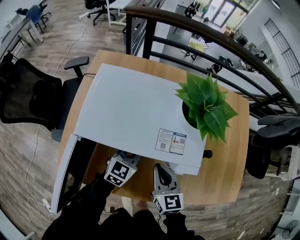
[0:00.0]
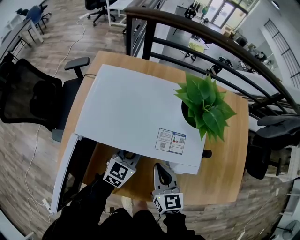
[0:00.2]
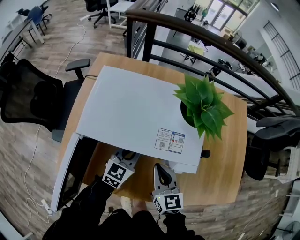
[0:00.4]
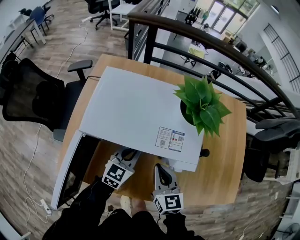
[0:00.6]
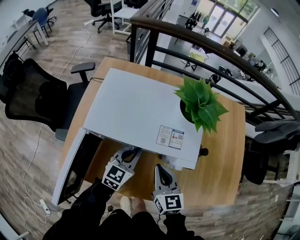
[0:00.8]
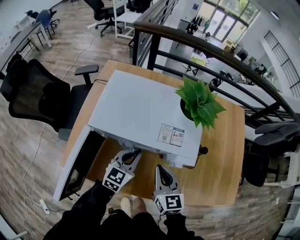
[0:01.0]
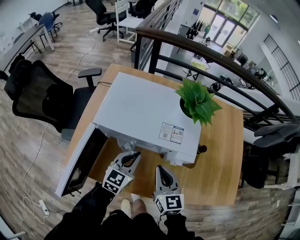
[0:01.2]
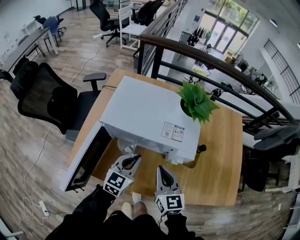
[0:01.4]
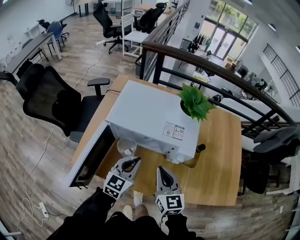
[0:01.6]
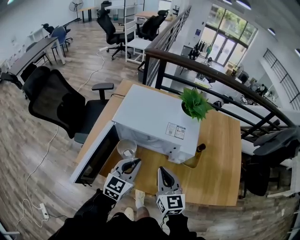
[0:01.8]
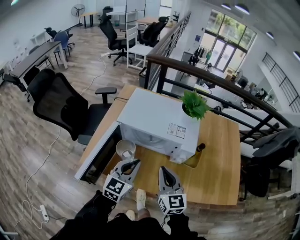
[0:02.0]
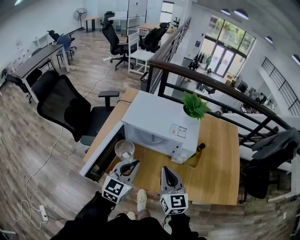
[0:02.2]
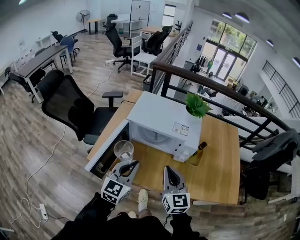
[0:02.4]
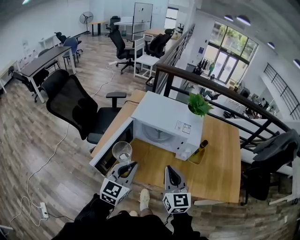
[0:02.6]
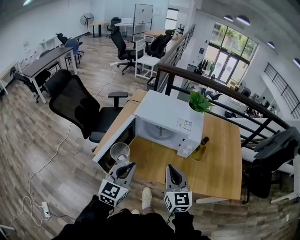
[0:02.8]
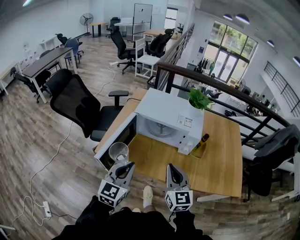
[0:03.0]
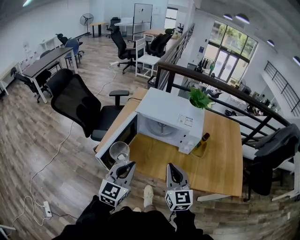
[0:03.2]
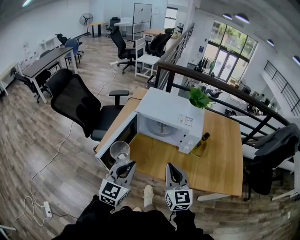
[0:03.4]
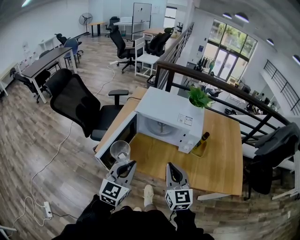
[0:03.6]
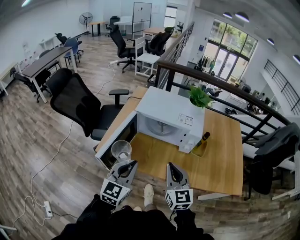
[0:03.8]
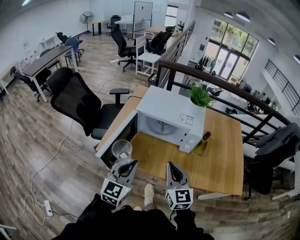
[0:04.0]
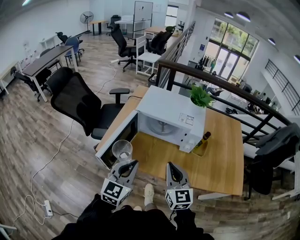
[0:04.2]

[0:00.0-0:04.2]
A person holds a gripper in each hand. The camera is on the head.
0:00.0 to 0:01.4: The left gripper travels backward and upward by some 15 cm. Meanwhile the right gripper goes about 10 cm upward and backward.
0:01.4 to 0:02.8: The two grippers go approximately 25 cm backward and upward.
0:02.8 to 0:04.2: The grippers move only a little.

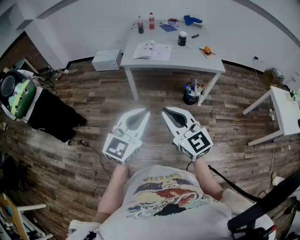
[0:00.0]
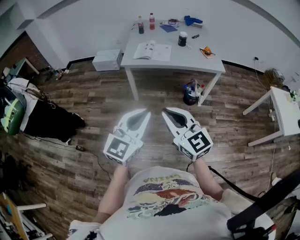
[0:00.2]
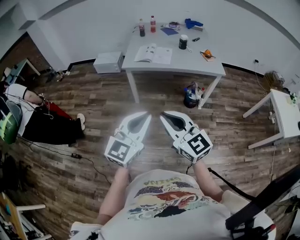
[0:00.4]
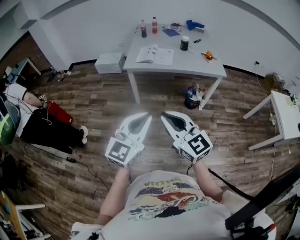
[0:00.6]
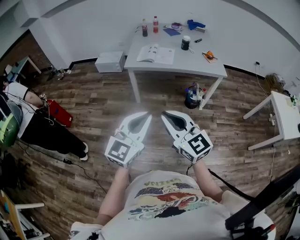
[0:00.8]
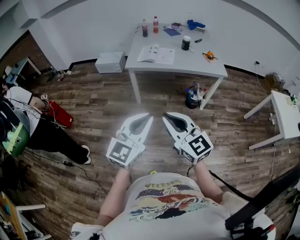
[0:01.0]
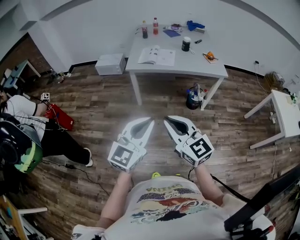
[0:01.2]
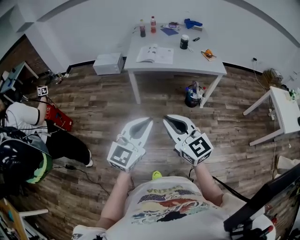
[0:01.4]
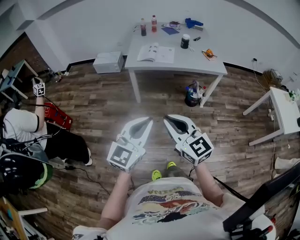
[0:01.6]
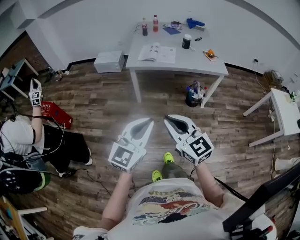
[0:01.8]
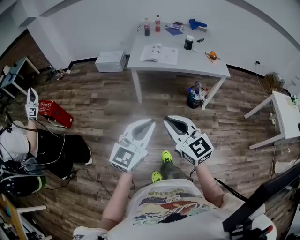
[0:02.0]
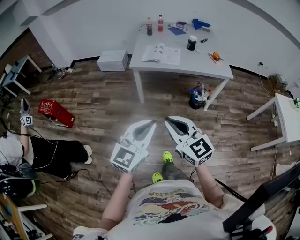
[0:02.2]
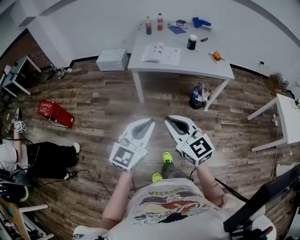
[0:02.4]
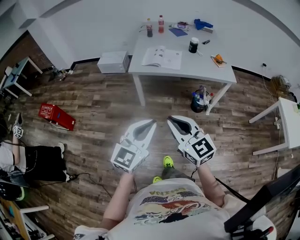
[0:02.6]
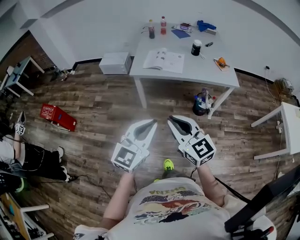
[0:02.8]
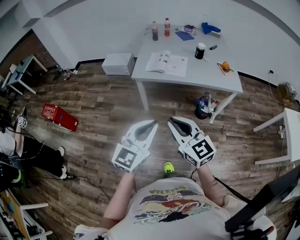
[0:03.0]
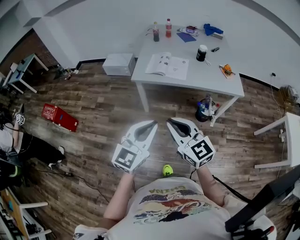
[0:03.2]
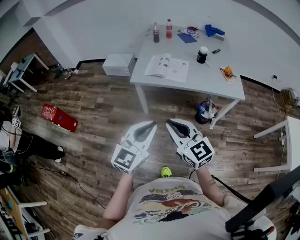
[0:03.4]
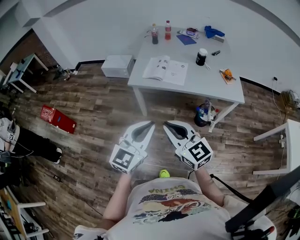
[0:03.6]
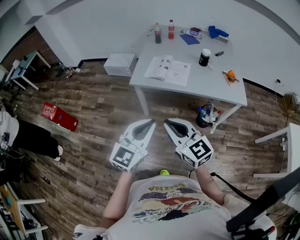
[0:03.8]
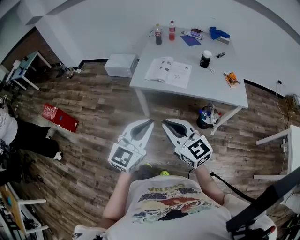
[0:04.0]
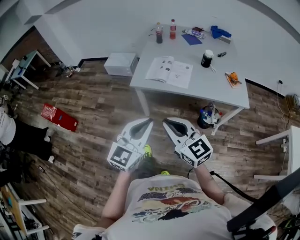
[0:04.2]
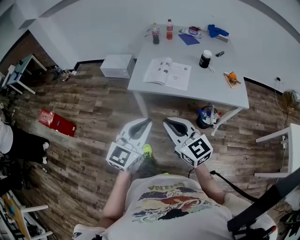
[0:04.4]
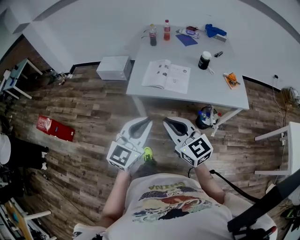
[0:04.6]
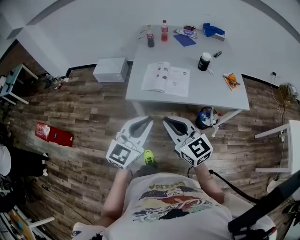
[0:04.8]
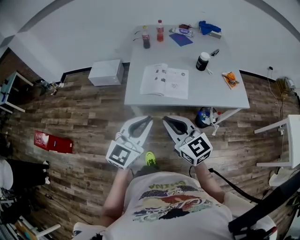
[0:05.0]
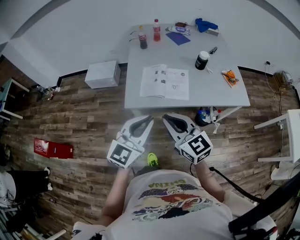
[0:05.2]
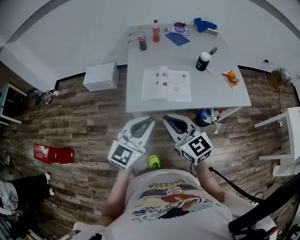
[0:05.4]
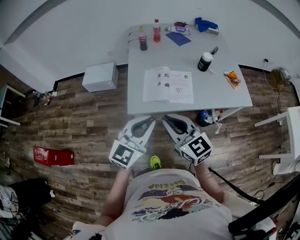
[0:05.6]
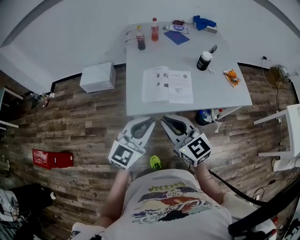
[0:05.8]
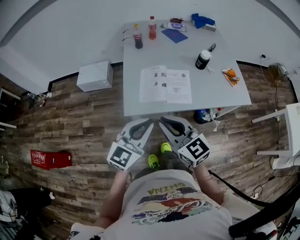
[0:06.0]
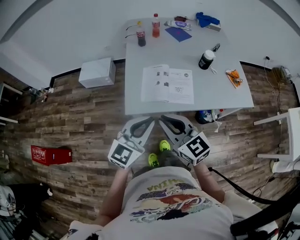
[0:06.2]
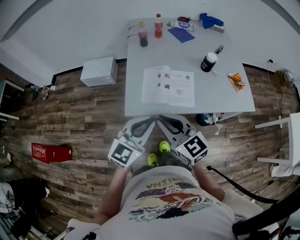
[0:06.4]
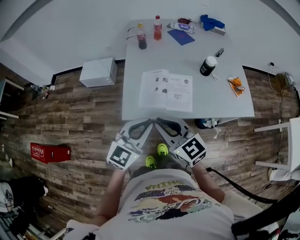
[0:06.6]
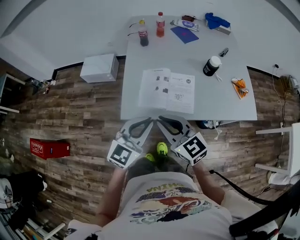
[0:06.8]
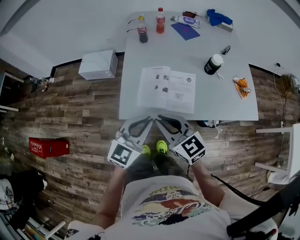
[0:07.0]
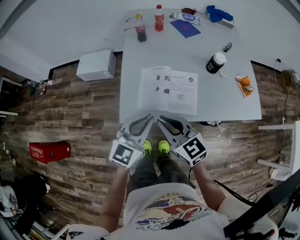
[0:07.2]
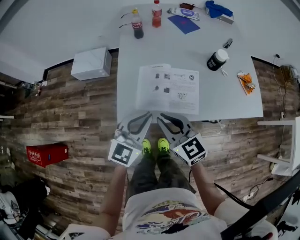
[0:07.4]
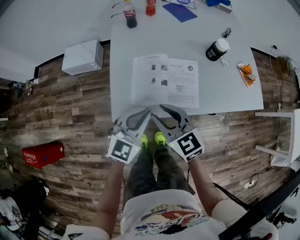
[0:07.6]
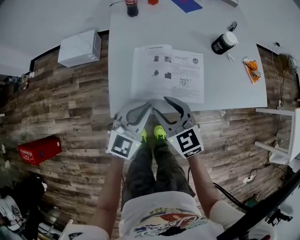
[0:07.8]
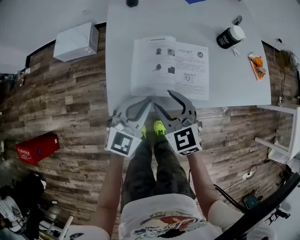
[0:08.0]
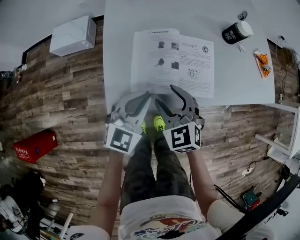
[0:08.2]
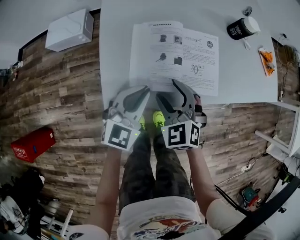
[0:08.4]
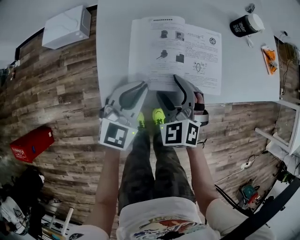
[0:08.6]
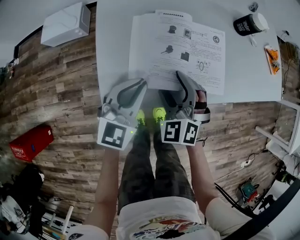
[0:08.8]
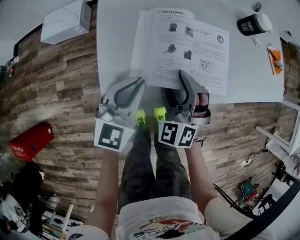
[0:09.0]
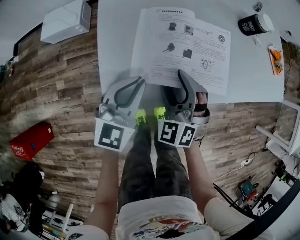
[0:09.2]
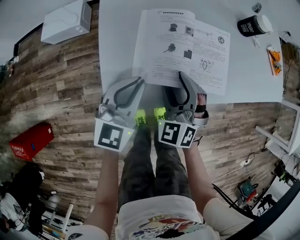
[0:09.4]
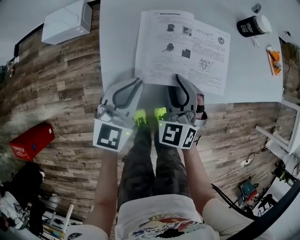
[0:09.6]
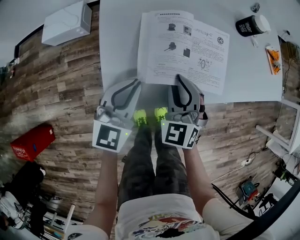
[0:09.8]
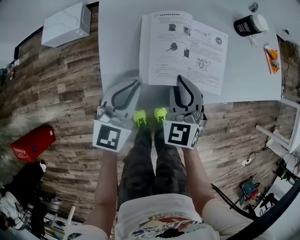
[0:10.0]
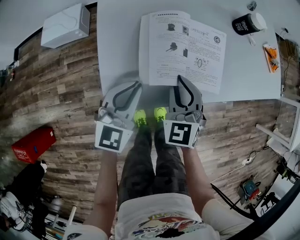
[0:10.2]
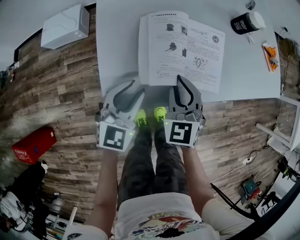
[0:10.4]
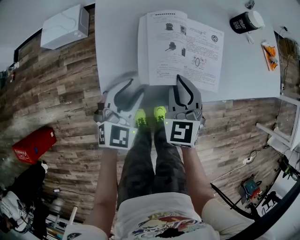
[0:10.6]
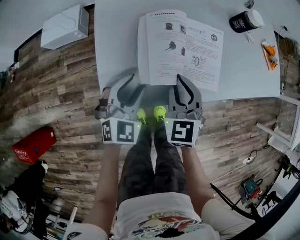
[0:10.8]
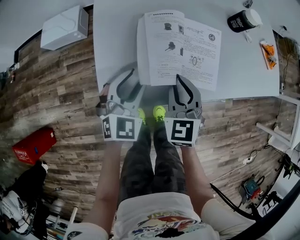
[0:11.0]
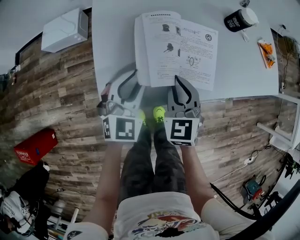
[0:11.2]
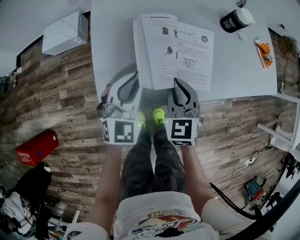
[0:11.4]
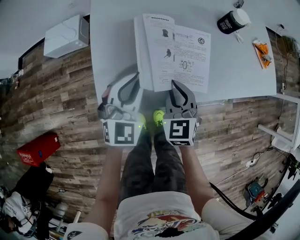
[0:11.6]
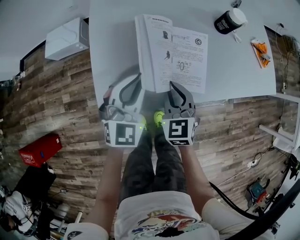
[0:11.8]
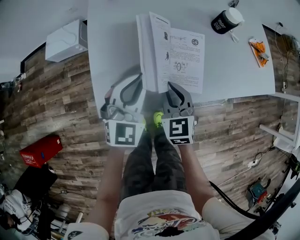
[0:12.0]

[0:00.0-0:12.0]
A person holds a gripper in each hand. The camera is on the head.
0:00.0 to 0:01.6: The two grippers go roughly 5 cm to the left.
0:01.6 to 0:03.0: The two grippers go roughly 20 cm forward.
0:03.0 to 0:04.4: The two grippers go some 20 cm forward.
0:04.4 to 0:06.0: Both grippers travel together forward and to the left, approximately 25 cm.
0:06.0 to 0:07.6: The grippers both shift forward and downward by about 25 cm.
0:07.6 to 0:09.0: The left gripper is displaced downward, to the left and forward by about 20 cm. The right gripper shifts approximately 20 cm downward, turns by about 50 degrees, and opens up.
0:09.0 to 0:10.4: The left gripper opens; the right gripper rotates roughly 30 degrees, and closes its fingers.
0:10.4 to 0:12.0: The right gripper shifts roughly 5 cm to the right, while the left gripper moves upward and to the right, roughly 10 cm.

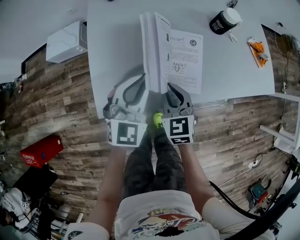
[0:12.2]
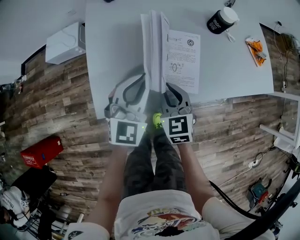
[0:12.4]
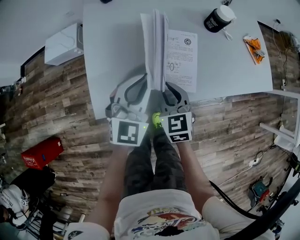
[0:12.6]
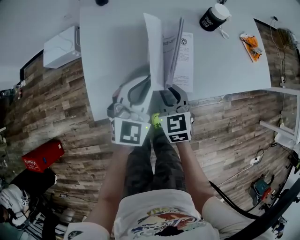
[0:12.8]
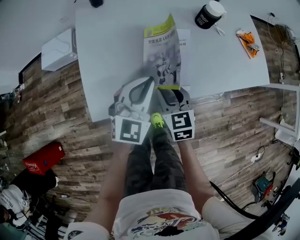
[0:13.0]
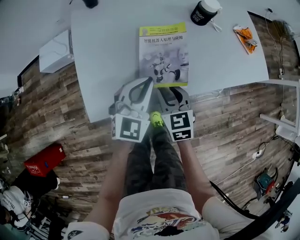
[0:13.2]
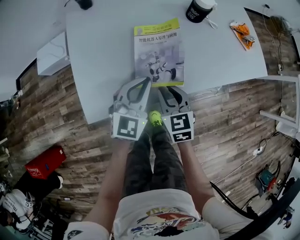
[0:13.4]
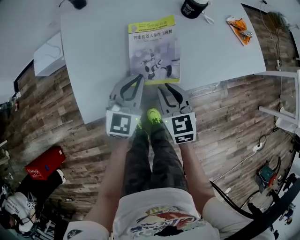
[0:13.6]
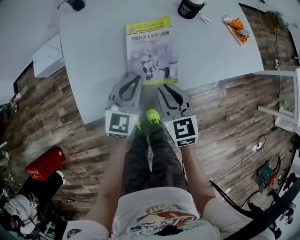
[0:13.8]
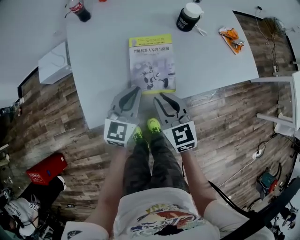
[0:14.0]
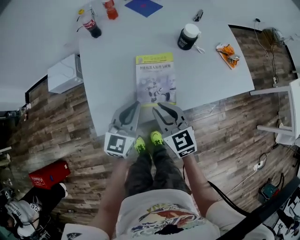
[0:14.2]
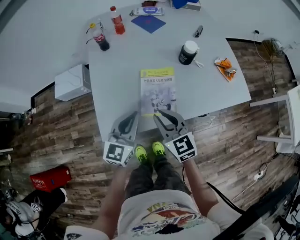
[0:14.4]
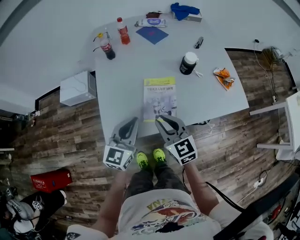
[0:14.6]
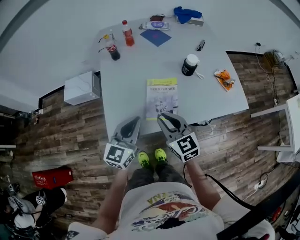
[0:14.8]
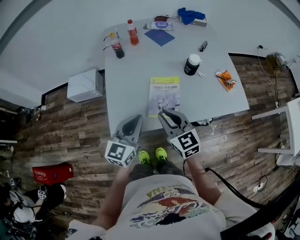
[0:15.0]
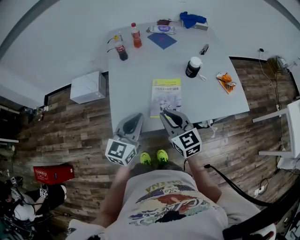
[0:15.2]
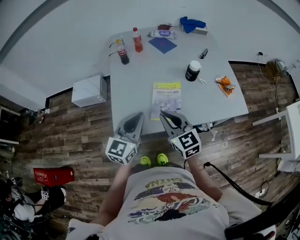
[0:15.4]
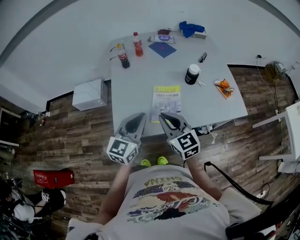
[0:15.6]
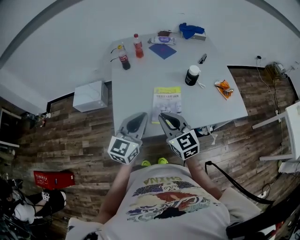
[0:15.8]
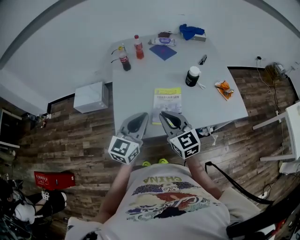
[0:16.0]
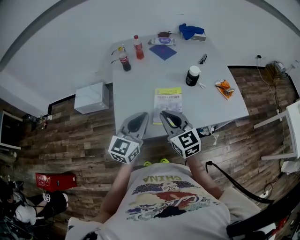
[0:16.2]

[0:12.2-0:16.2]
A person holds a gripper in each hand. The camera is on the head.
0:12.2 to 0:13.6: The right gripper goes some 10 cm to the right. The left gripper shifts approximately 10 cm to the right and downward.
0:13.6 to 0:14.8: Both grippers travel together upward, approximately 20 cm. The right gripper rotates about 20 degrees.
0:14.8 to 0:16.2: Both grippers move upward, approximately 5 cm.

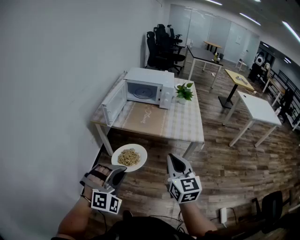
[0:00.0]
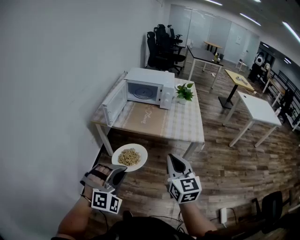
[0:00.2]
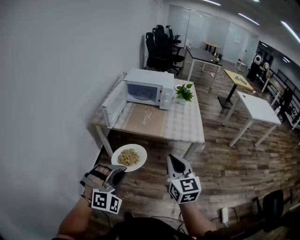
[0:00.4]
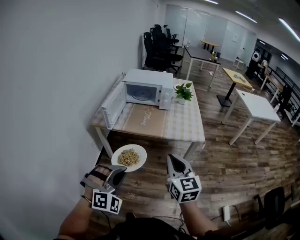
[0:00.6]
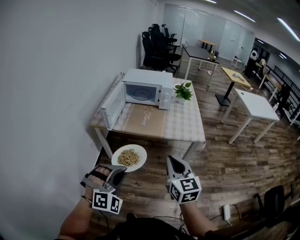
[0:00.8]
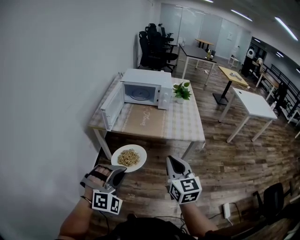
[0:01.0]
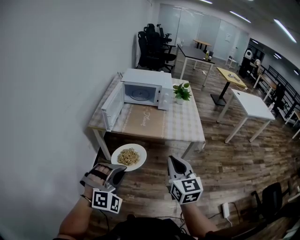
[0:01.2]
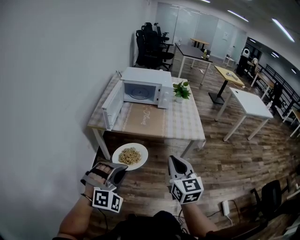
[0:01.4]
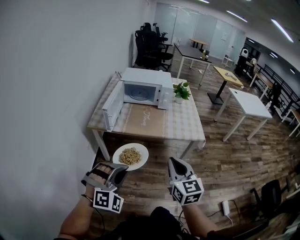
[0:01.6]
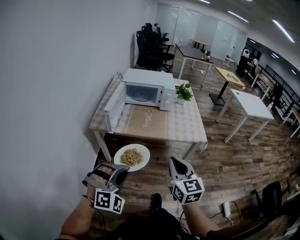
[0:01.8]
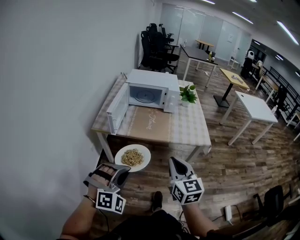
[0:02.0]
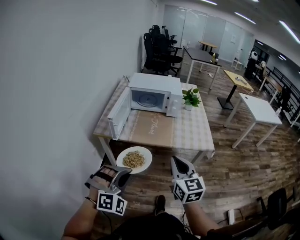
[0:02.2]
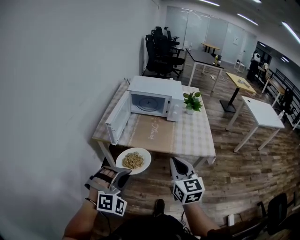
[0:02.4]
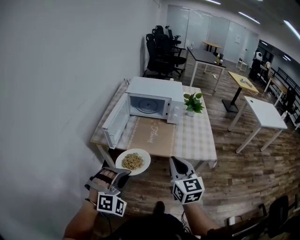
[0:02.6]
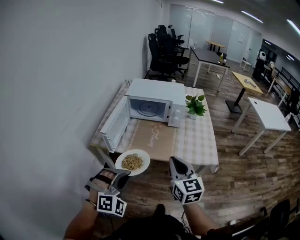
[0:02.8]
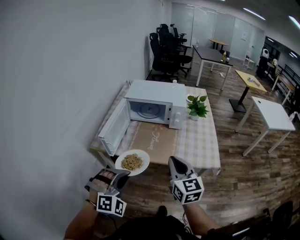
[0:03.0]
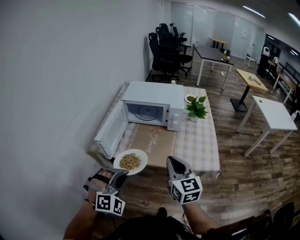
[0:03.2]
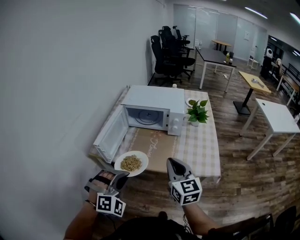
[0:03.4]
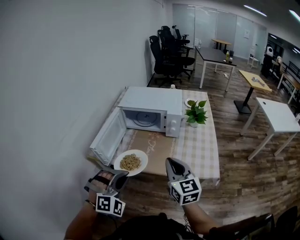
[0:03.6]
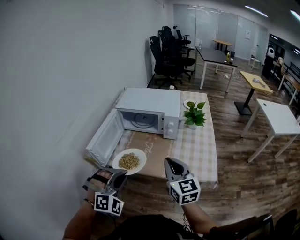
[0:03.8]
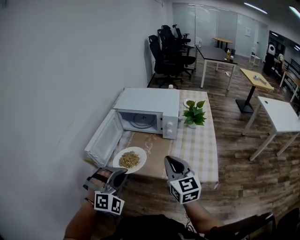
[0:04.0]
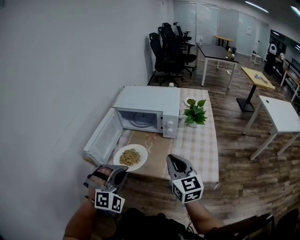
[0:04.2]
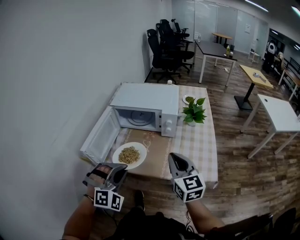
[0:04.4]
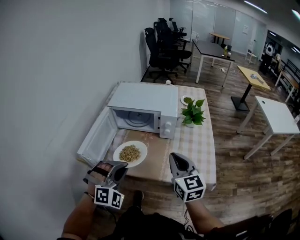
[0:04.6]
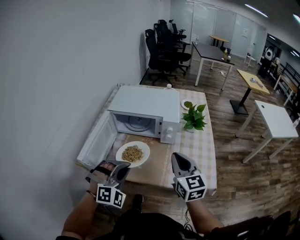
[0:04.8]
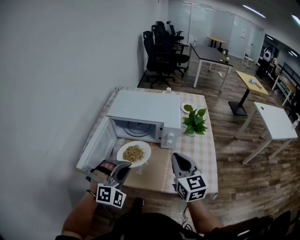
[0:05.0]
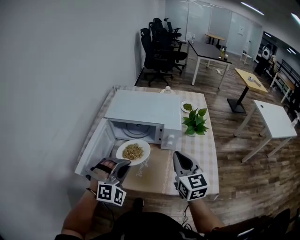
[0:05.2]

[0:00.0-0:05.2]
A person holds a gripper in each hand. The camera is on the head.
0:00.0 to 0:01.8: The left gripper goes about 10 cm to the left and forward, while the right gripper travels to the left by about 10 cm.
0:01.8 to 0:03.4: Both grippers move forward, about 25 cm.
0:03.4 to 0:05.2: The two grippers go roughly 20 cm forward.
